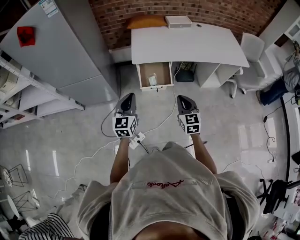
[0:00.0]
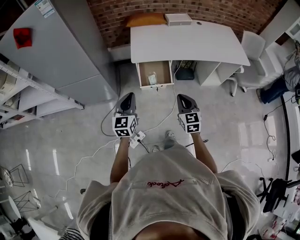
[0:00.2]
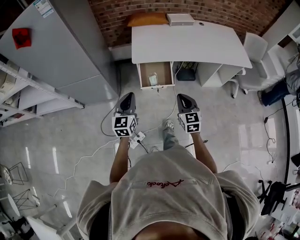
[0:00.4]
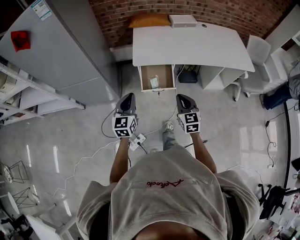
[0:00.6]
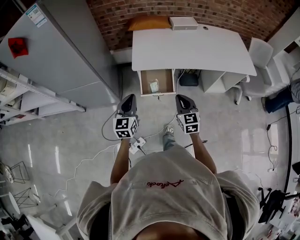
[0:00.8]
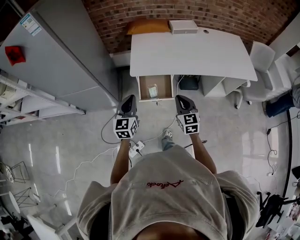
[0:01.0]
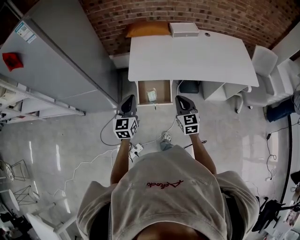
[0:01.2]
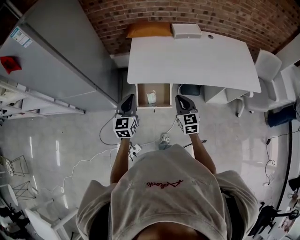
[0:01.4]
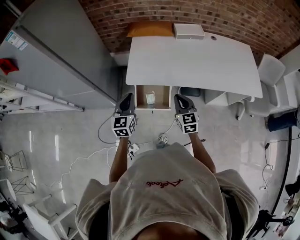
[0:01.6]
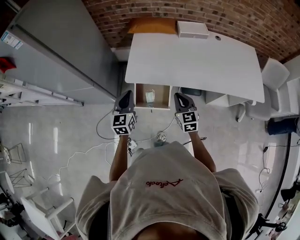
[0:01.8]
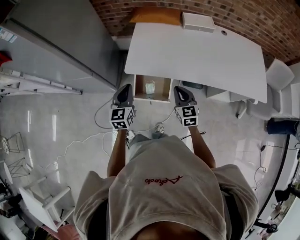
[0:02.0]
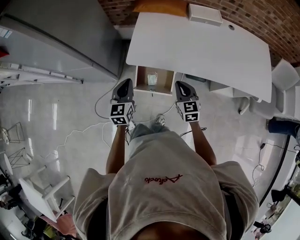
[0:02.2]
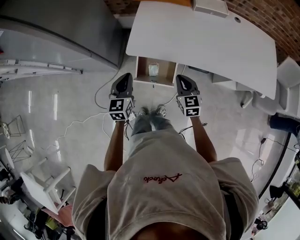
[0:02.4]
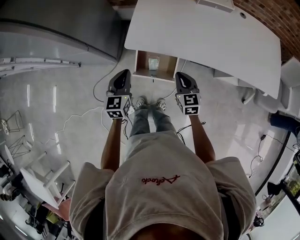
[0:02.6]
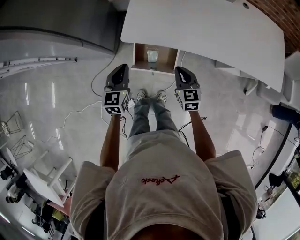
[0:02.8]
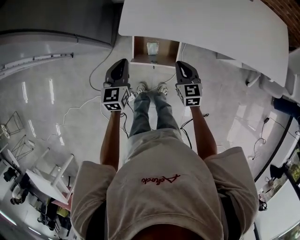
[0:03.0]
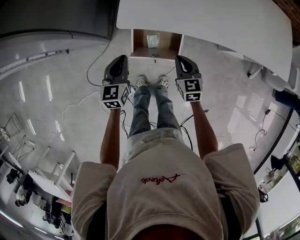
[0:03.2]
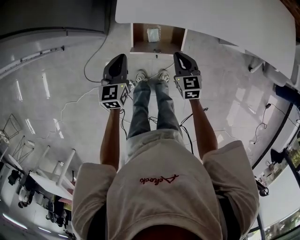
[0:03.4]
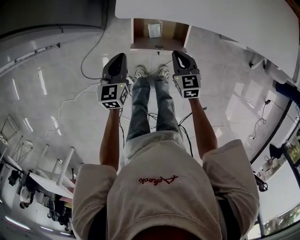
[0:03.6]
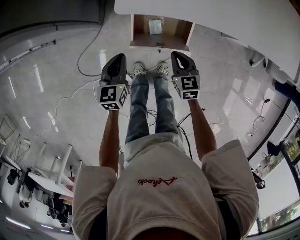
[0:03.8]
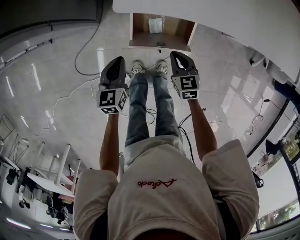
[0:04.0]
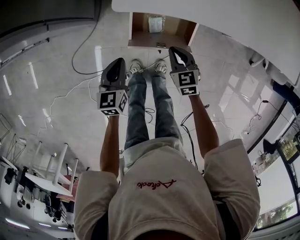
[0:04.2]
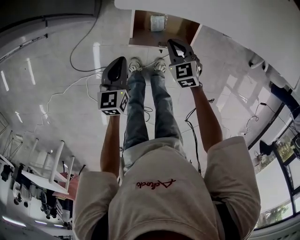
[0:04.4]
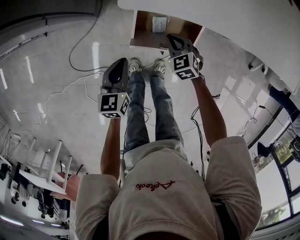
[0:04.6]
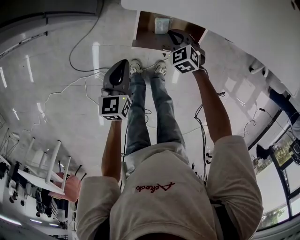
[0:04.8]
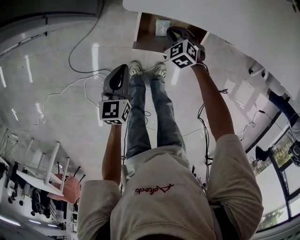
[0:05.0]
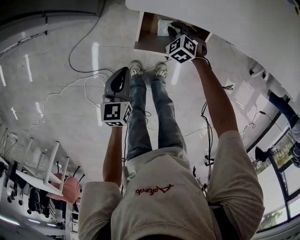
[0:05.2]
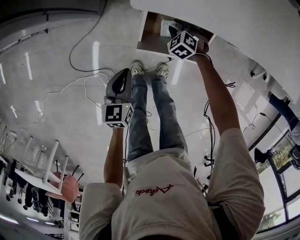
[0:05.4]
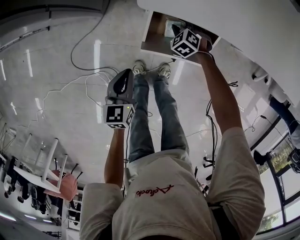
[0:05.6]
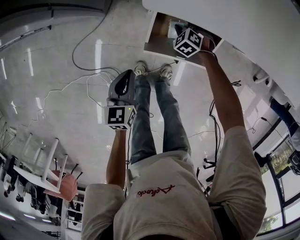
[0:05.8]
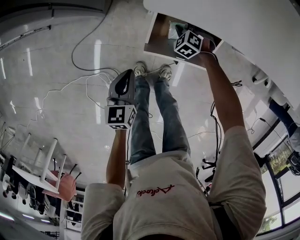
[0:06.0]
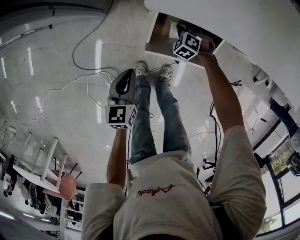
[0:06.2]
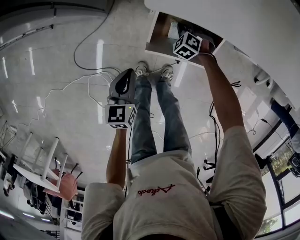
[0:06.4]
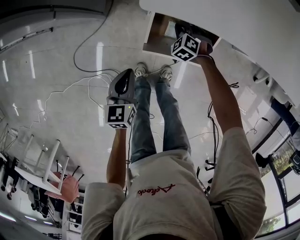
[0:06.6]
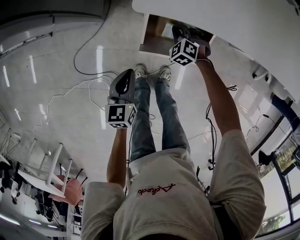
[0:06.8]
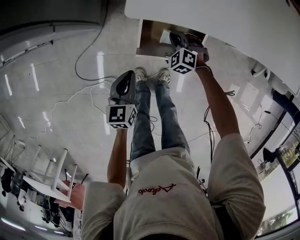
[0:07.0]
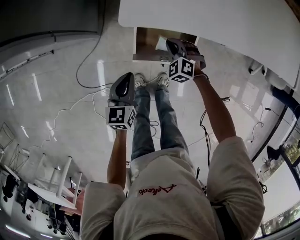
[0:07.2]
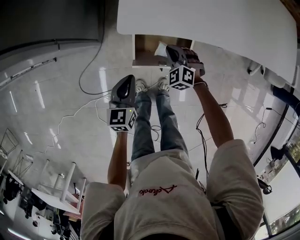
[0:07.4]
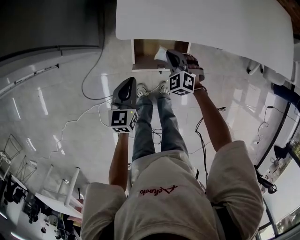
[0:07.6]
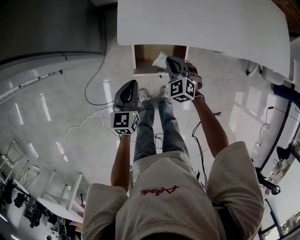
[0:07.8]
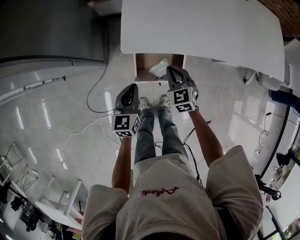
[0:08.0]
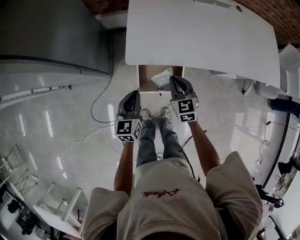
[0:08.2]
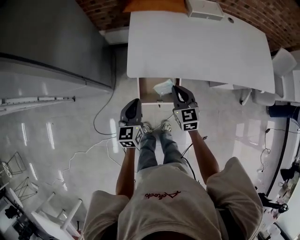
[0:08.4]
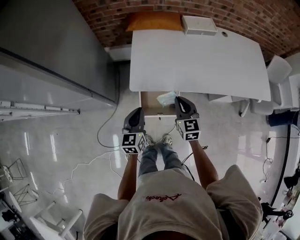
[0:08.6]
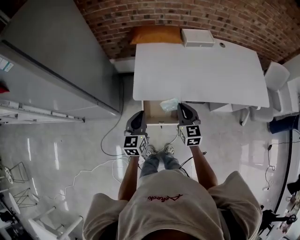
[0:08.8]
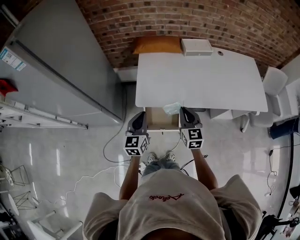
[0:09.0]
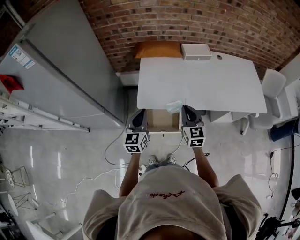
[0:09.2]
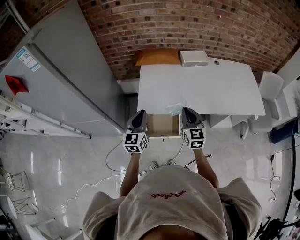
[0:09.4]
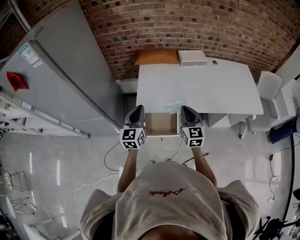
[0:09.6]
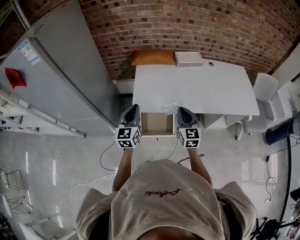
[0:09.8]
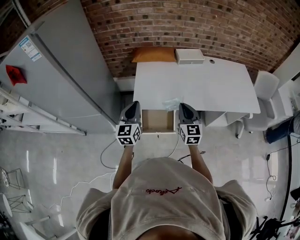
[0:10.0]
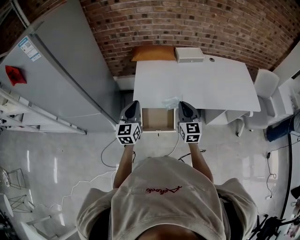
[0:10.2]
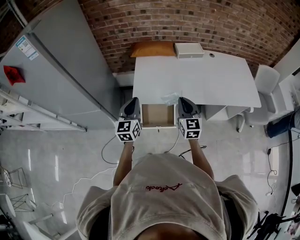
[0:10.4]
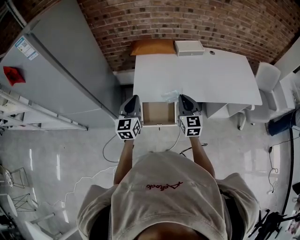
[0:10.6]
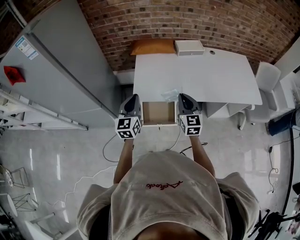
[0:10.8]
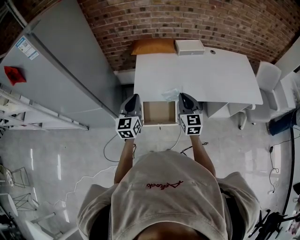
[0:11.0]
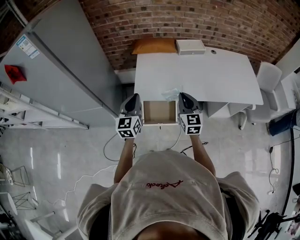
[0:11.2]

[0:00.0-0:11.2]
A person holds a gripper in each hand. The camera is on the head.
0:00.0 to 0:01.6: Both grippers travel together forward, roughly 25 cm.
0:01.6 to 0:03.2: Both grippers move downward, roughly 20 cm.
0:03.2 to 0:04.8: The left gripper is displaced downward by some 15 cm. Meanwhile the right gripper travels downward and to the left by approximately 20 cm, and swivels some 40 degrees.
0:04.8 to 0:06.4: The left gripper shifts by roughly 5 cm, while the right gripper travels downward and forward by some 10 cm, changes its angle by some 30 degrees, and opens, then closes once more.
0:06.4 to 0:08.0: The left gripper moves upward, to the right and forward, roughly 15 cm; the right gripper heads upward, covering about 30 cm, and angles its fingers upward, by roughly 30 degrees.
0:08.0 to 0:09.6: The grippers both shift upward by about 25 cm. The right gripper rotates about 30 degrees. Meanwhile the left gripper swivels some 20 degrees.
0:09.6 to 0:11.2: Both grippers stay put.

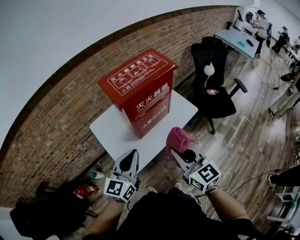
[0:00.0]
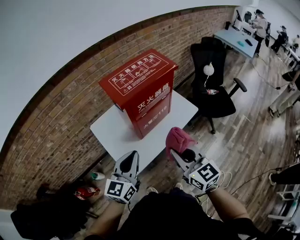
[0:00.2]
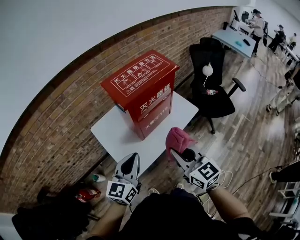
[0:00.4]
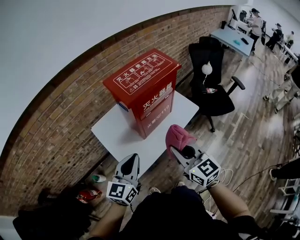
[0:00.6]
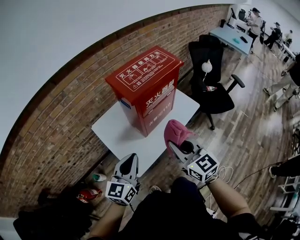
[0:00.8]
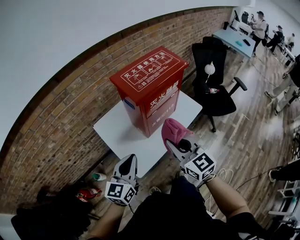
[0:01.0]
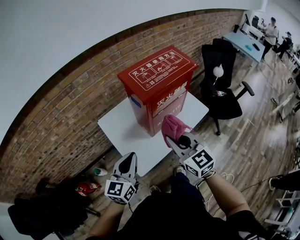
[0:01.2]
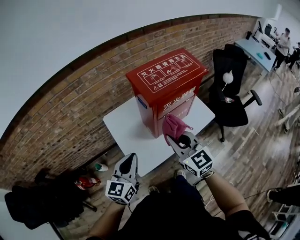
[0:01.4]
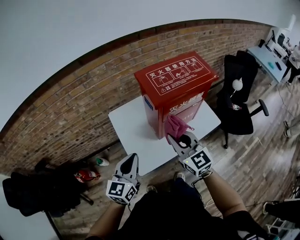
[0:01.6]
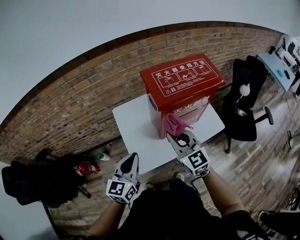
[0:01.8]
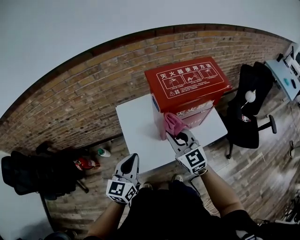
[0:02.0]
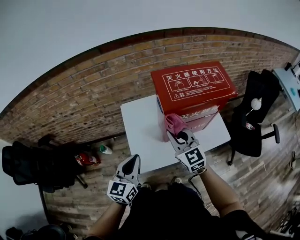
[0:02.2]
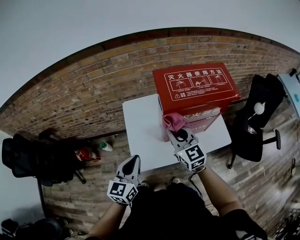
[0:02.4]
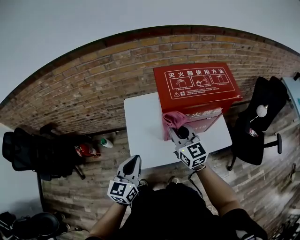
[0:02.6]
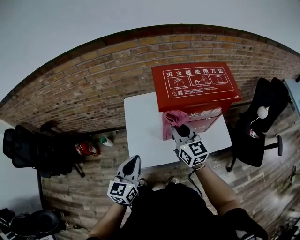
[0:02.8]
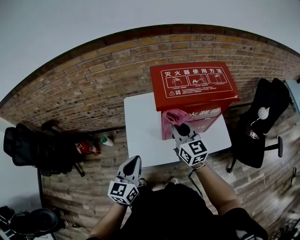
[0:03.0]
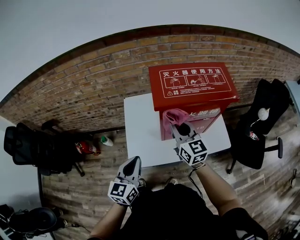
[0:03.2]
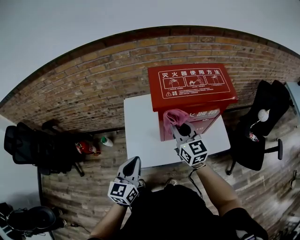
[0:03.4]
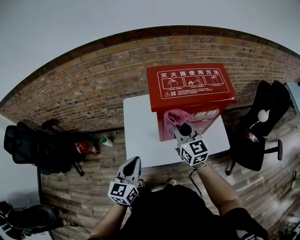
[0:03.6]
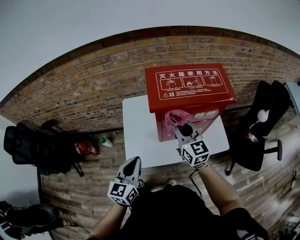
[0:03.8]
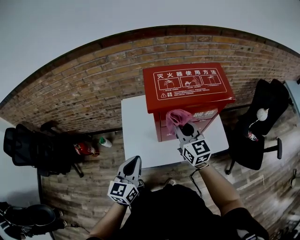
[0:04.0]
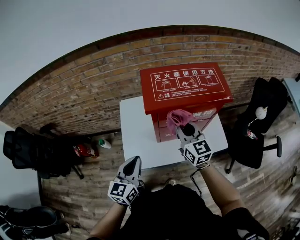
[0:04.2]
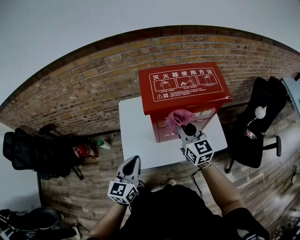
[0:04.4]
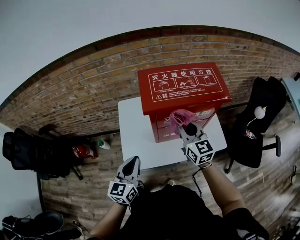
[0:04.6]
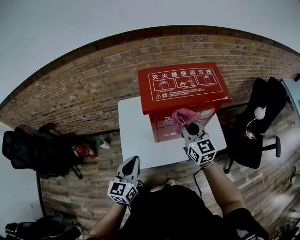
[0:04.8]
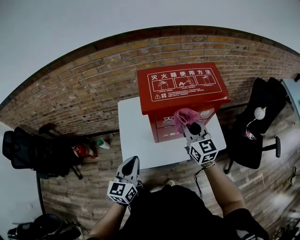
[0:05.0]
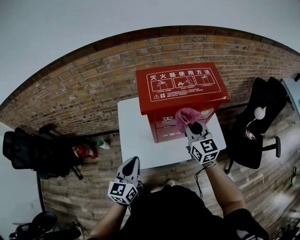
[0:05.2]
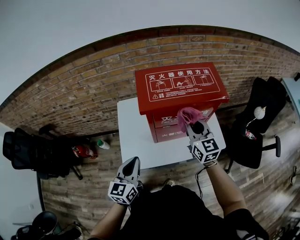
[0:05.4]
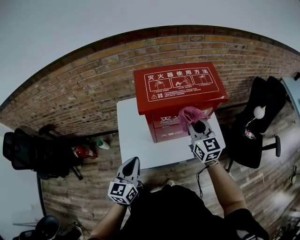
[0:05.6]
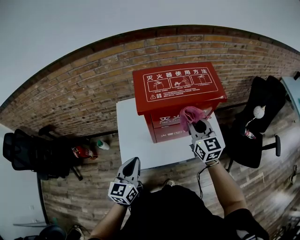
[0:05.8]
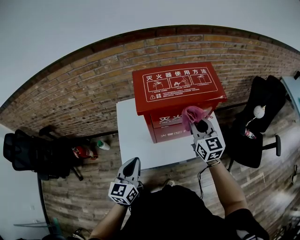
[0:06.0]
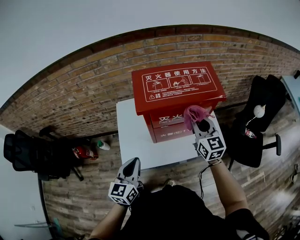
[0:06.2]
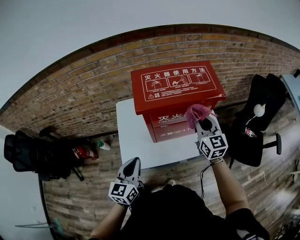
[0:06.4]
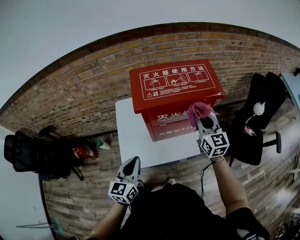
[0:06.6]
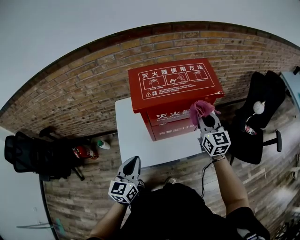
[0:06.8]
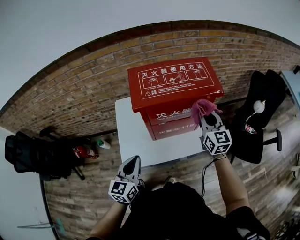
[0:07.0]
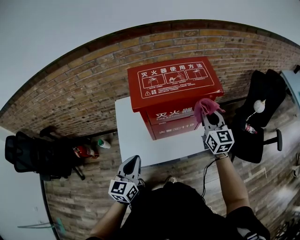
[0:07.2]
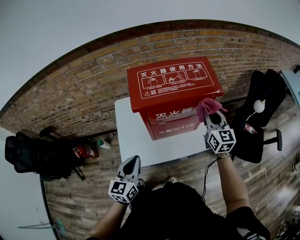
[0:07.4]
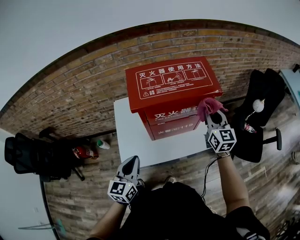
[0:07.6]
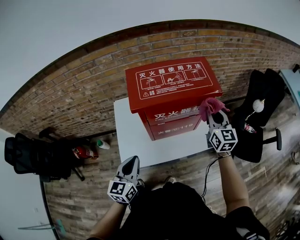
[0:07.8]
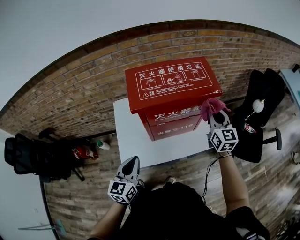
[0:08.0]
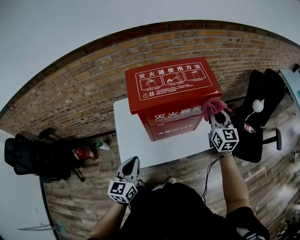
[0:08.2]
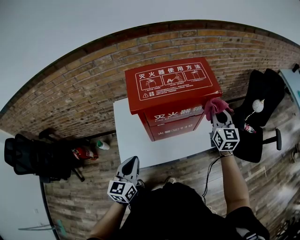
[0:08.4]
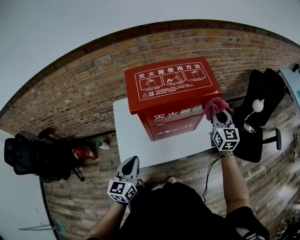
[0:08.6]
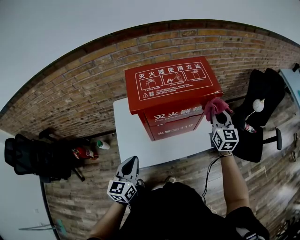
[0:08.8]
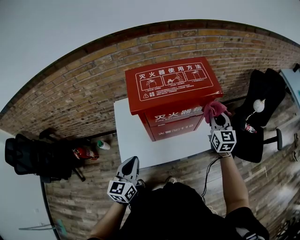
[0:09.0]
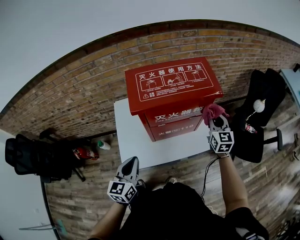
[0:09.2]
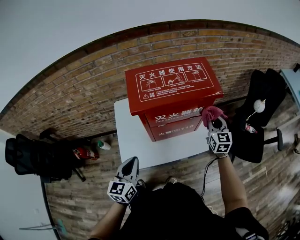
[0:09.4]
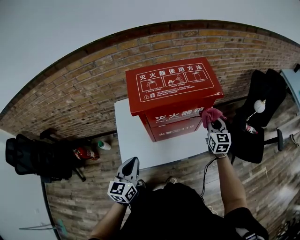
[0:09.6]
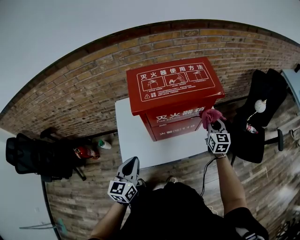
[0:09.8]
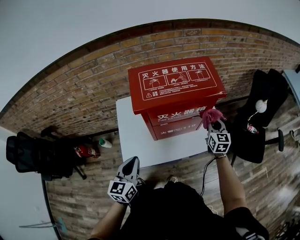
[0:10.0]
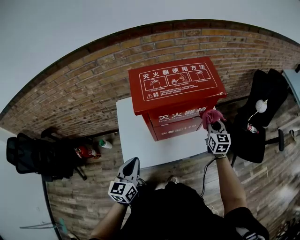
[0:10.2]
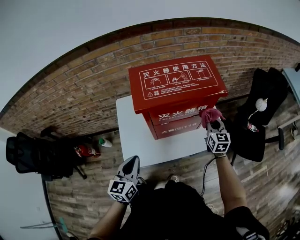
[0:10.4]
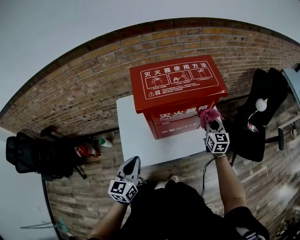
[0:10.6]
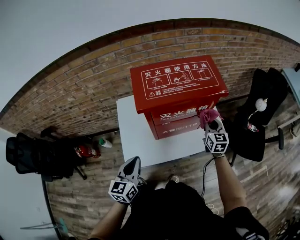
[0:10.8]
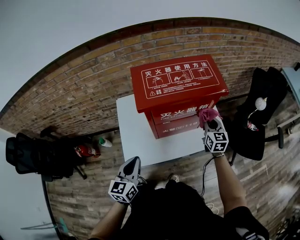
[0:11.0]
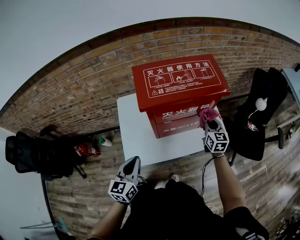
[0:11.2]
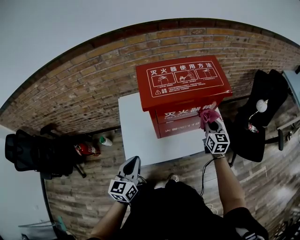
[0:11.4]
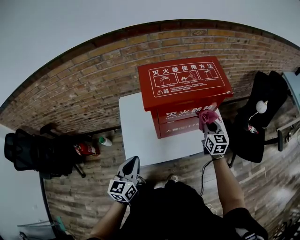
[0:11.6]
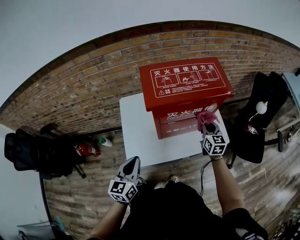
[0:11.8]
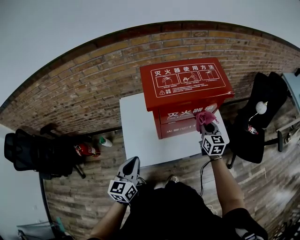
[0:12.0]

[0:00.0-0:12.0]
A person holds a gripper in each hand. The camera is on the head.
0:00.0 to 0:01.6: The left gripper shifts some 10 cm to the left, while the right gripper shifts some 15 cm forward and to the left.
0:01.6 to 0:03.0: The right gripper is displaced forward by approximately 10 cm. Meanwhile the left gripper moves to the right, some 5 cm, and turns by some 20 degrees.
0:03.0 to 0:04.4: The right gripper heads to the right, covering some 5 cm.
0:04.4 to 0:06.0: The right gripper shifts some 10 cm to the right.
0:06.0 to 0:07.6: The right gripper heads to the right, covering approximately 10 cm.
0:07.6 to 0:09.0: The right gripper ends up roughly 5 cm from where it was.
0:09.0 to 0:10.4: The right gripper shifts approximately 10 cm downward.
0:10.4 to 0:12.0: The right gripper travels to the left by some 5 cm.

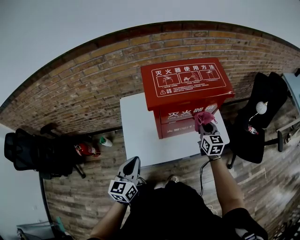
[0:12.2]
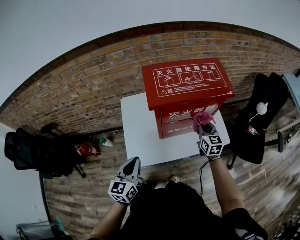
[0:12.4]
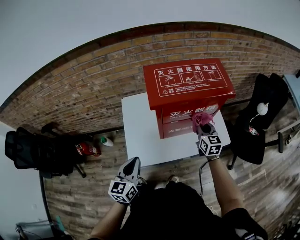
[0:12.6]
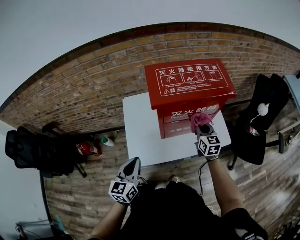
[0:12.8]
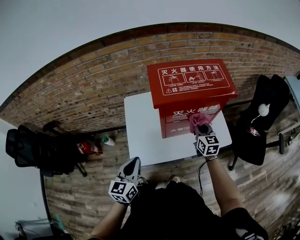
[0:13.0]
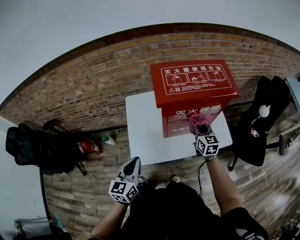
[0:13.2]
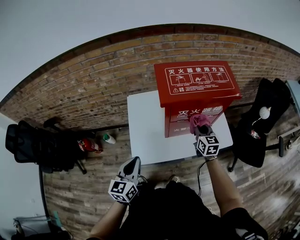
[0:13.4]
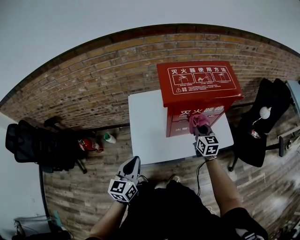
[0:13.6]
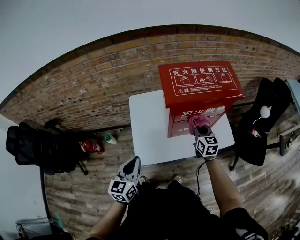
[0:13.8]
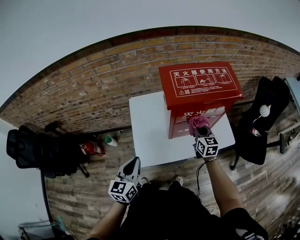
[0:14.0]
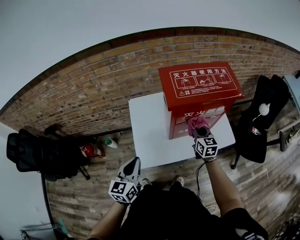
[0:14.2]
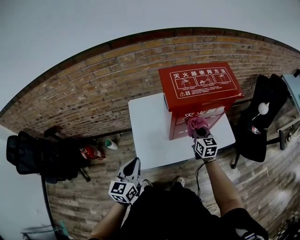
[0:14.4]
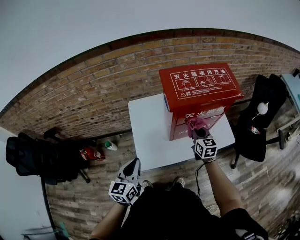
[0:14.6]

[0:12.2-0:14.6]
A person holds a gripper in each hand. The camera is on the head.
0:12.2 to 0:13.4: The right gripper shifts approximately 5 cm to the left.
0:13.4 to 0:14.6: The left gripper shifts by approximately 5 cm.
